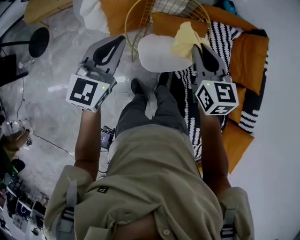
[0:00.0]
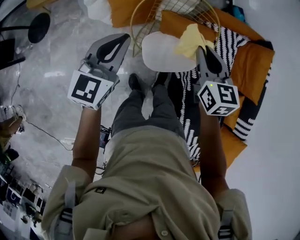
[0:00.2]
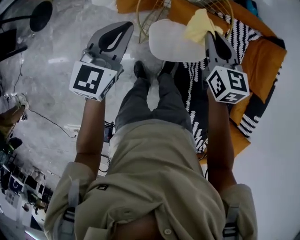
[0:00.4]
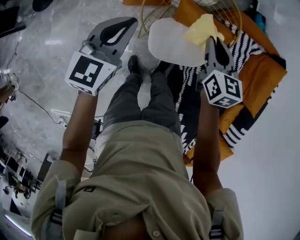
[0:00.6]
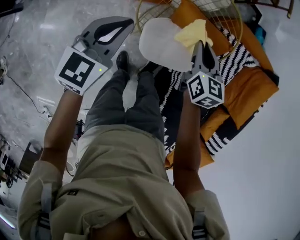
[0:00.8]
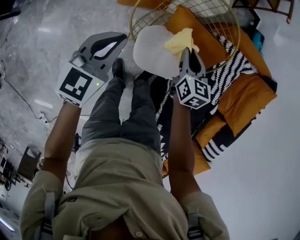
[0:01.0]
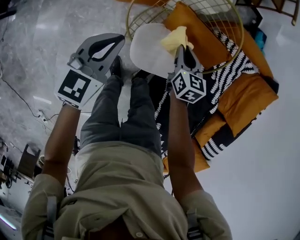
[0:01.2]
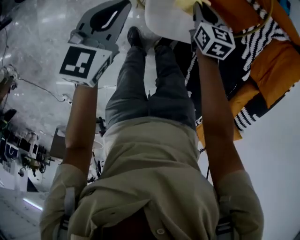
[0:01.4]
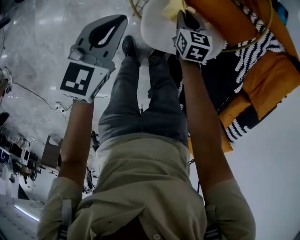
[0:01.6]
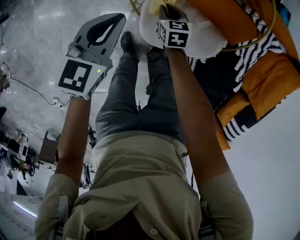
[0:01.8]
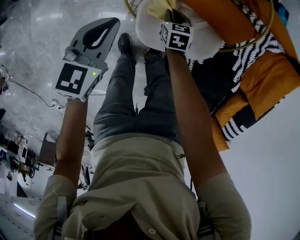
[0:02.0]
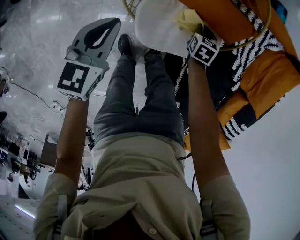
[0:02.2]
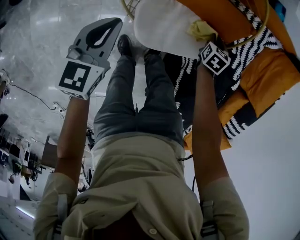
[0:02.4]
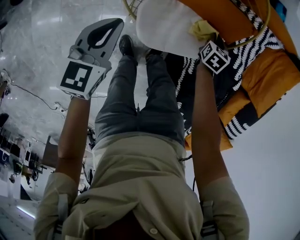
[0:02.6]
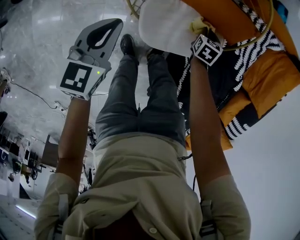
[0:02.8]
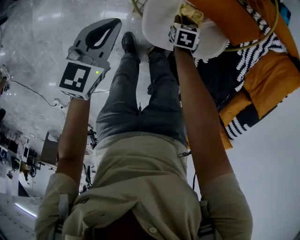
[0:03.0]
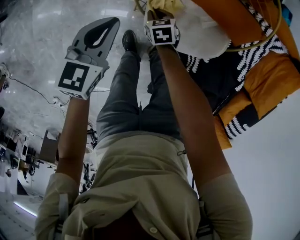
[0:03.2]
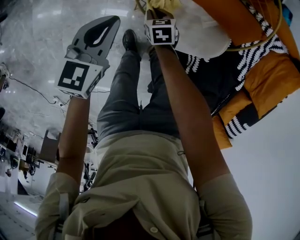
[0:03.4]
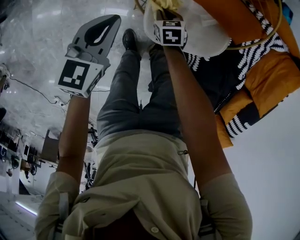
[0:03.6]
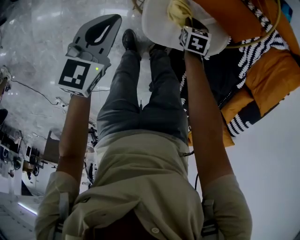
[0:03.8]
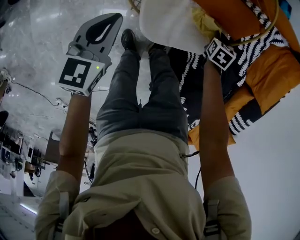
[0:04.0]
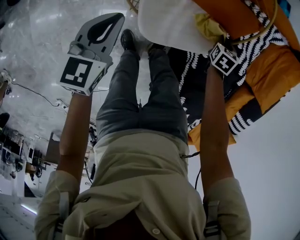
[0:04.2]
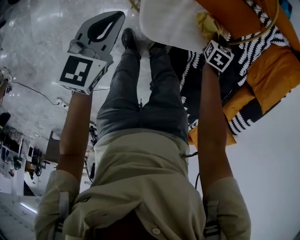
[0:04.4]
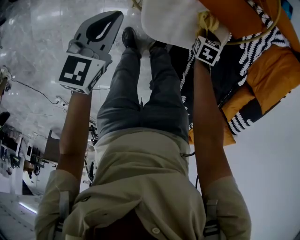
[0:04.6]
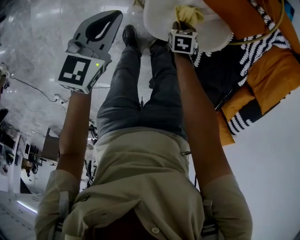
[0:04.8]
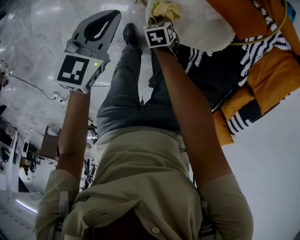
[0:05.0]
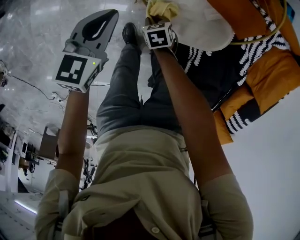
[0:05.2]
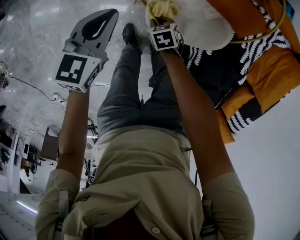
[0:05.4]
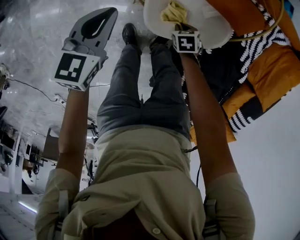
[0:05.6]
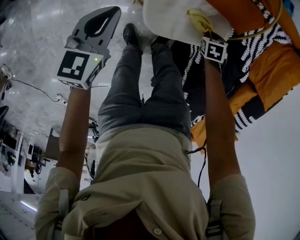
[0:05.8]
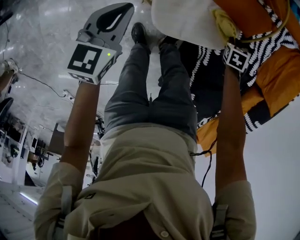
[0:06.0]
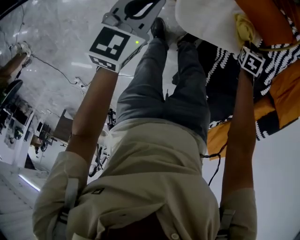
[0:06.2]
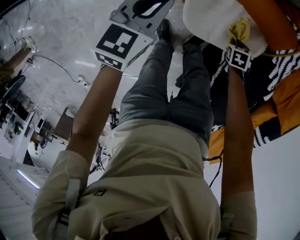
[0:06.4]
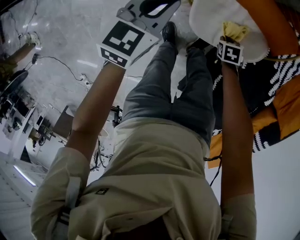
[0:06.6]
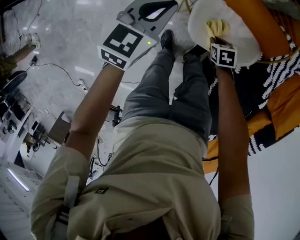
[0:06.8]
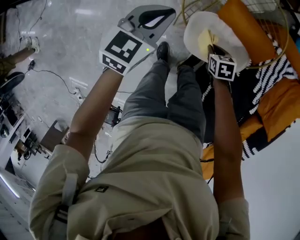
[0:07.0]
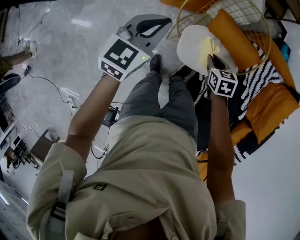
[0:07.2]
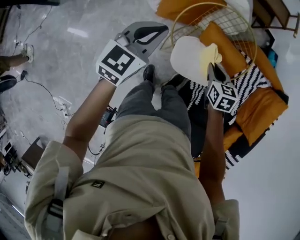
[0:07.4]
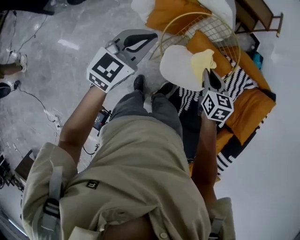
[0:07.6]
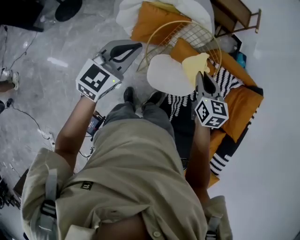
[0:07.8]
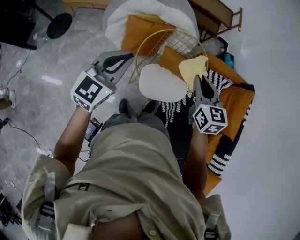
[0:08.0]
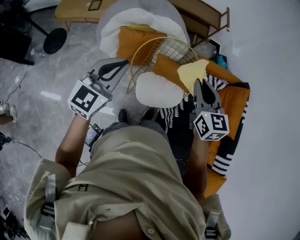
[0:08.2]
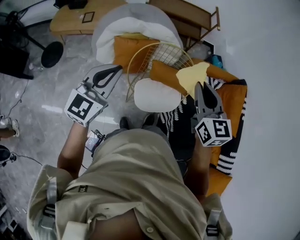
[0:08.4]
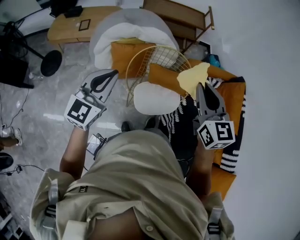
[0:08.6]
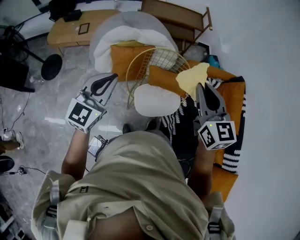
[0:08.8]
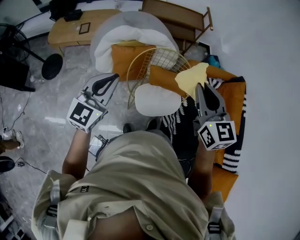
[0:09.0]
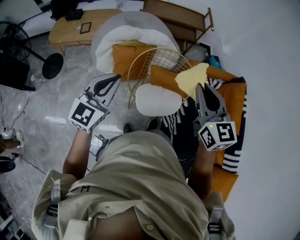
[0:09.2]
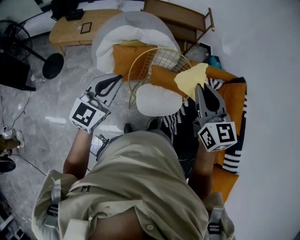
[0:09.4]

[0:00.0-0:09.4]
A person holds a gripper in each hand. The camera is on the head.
0.0 to 1.6 s: The left gripper heads downward, covering roughly 30 cm, and turns by some 30 degrees; the right gripper heads downward, covering about 40 cm, and rotates about 30 degrees.
1.6 to 3.2 s: The left gripper goes roughly 5 cm downward. The right gripper moves up and down over some 10 cm, changing direction 2 times.
3.2 to 4.8 s: The right gripper travels upward and back again, about 5 cm each way.
4.8 to 6.2 s: The right gripper moves some 20 cm.
6.2 to 7.8 s: Both grippers travel together upward, about 40 cm. The left gripper changes its angle by roughly 20 degrees. Meanwhile the right gripper angles its fingers upward, by some 50 degrees.
7.8 to 9.4 s: The right gripper moves upward, about 20 cm, and changes its angle by some 20 degrees, while the left gripper shifts some 10 cm upward.

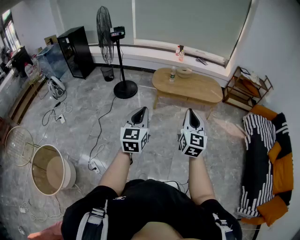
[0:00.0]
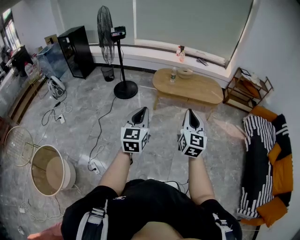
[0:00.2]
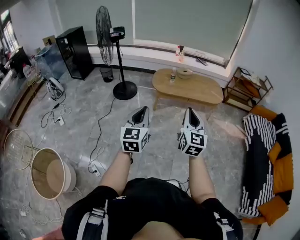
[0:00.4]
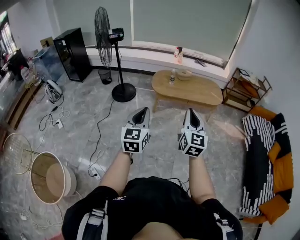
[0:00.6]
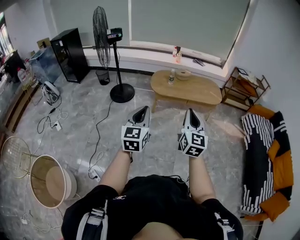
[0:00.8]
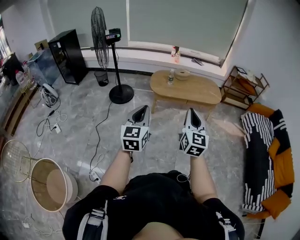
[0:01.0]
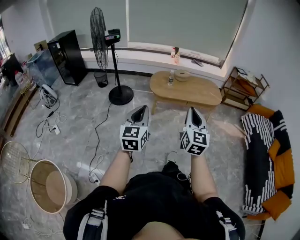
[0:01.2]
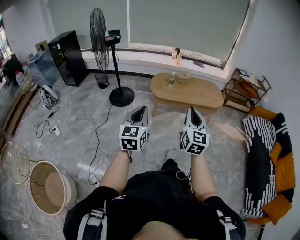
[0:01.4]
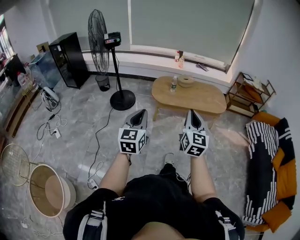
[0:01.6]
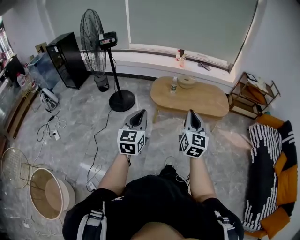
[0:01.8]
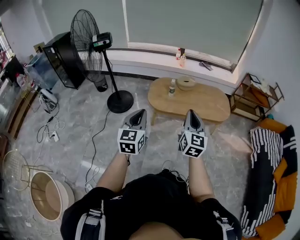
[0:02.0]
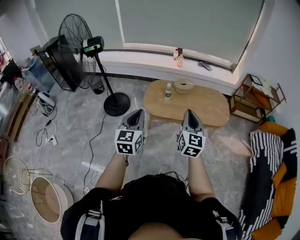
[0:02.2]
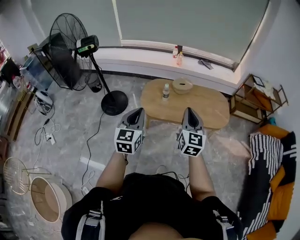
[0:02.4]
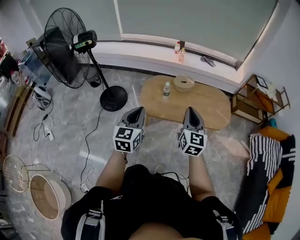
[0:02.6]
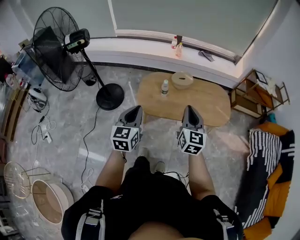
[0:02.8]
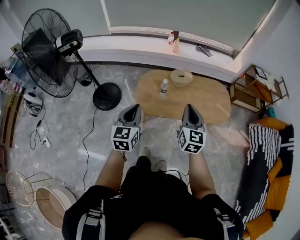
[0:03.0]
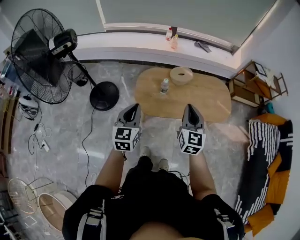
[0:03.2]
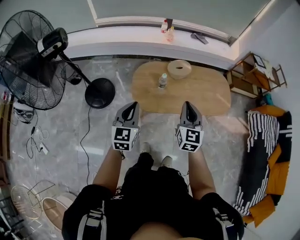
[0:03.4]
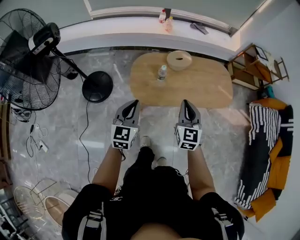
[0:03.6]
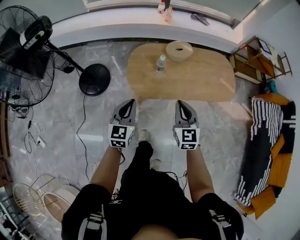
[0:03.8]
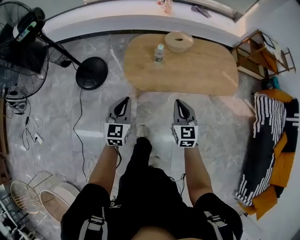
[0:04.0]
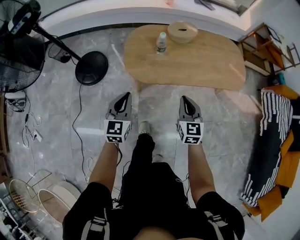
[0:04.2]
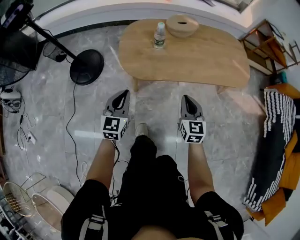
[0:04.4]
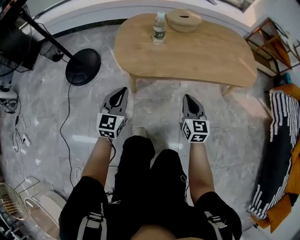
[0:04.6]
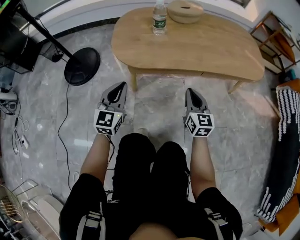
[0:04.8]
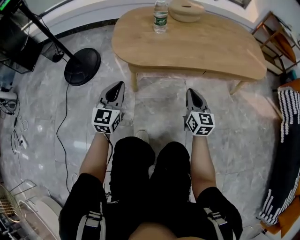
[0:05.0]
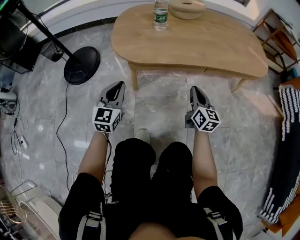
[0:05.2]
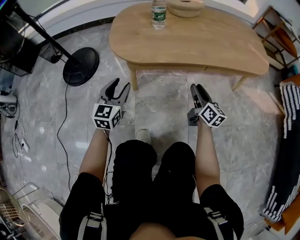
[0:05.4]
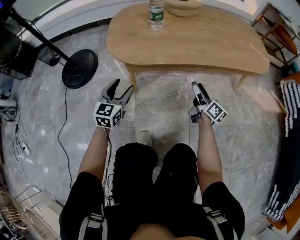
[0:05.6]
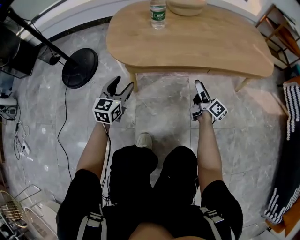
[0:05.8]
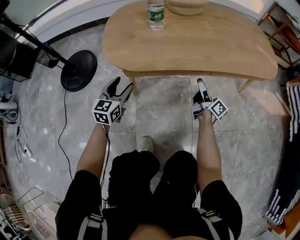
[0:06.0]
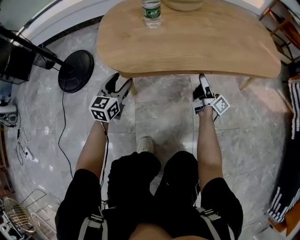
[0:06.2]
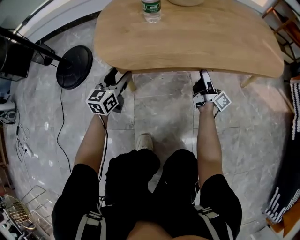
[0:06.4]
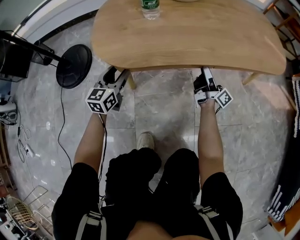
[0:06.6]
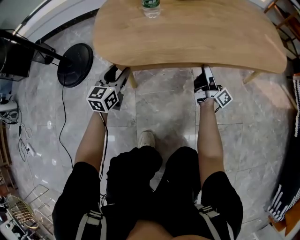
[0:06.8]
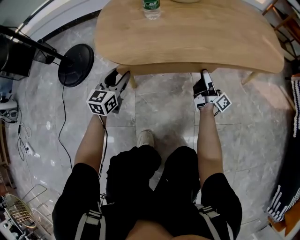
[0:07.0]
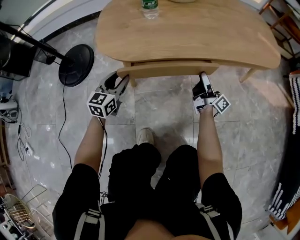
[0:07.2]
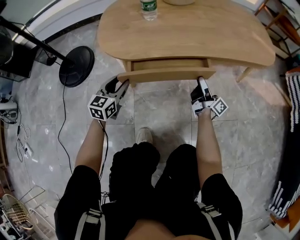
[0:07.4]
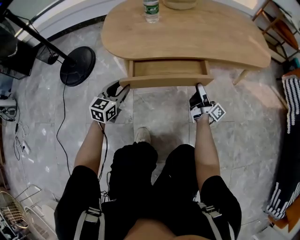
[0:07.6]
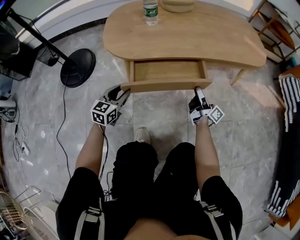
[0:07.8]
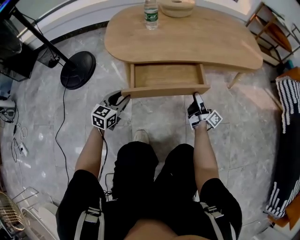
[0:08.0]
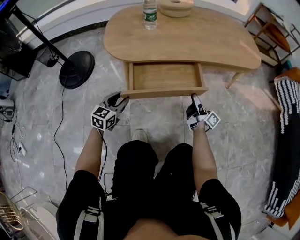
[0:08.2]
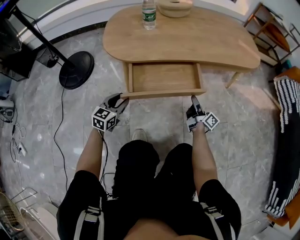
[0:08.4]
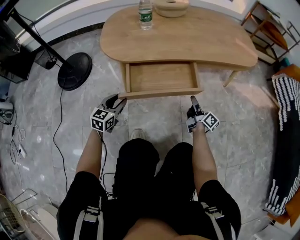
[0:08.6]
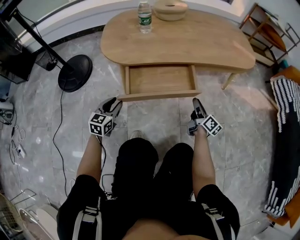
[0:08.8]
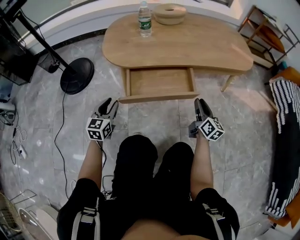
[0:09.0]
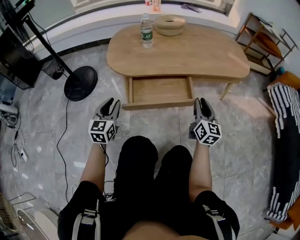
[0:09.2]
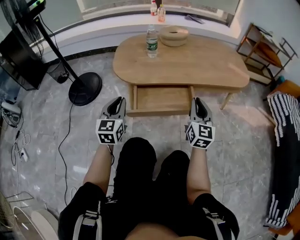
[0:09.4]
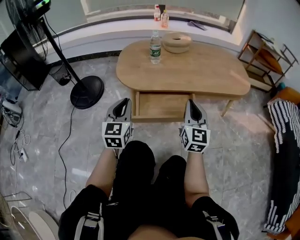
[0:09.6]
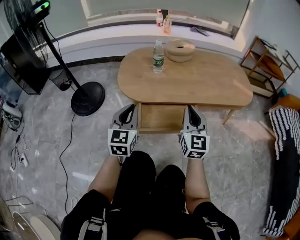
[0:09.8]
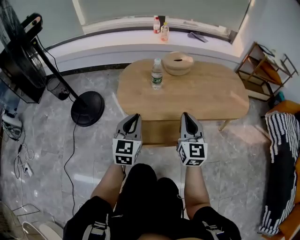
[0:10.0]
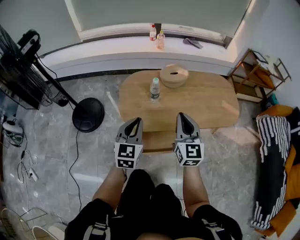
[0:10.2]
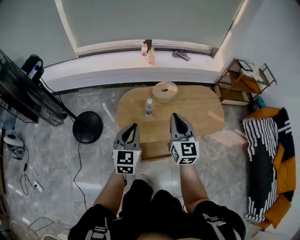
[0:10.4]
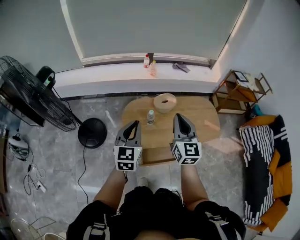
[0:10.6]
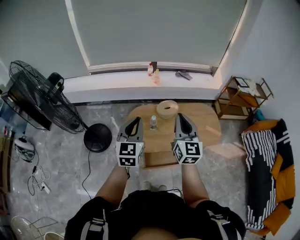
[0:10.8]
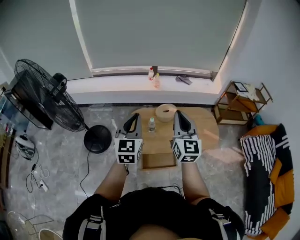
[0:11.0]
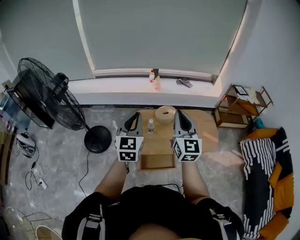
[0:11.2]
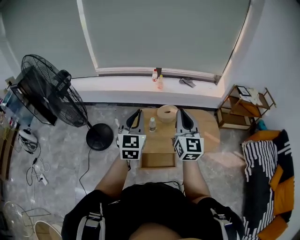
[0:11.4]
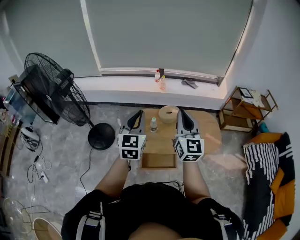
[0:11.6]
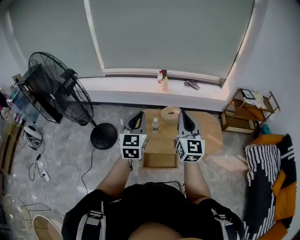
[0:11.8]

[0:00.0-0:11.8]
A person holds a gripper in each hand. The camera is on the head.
0.0 to 1.4 s: The grippers both shift forward and to the left by some 15 cm.
1.4 to 3.0 s: The pair of grippers is taken forward, about 70 cm.
3.0 to 4.4 s: The two grippers go roughly 50 cm downward.
4.4 to 6.0 s: The two grippers go roughly 35 cm downward. The left gripper opens up. The right gripper twists roughly 60 degrees clockwise, seen from behind, and opens.
6.0 to 7.4 s: The right gripper moves backward, some 5 cm, and closes.
7.4 to 8.8 s: The left gripper heads backward, covering some 10 cm, while the right gripper travels backward and to the right by about 15 cm, and rotates roughly 30 degrees.
8.8 to 10.4 s: Both grippers move upward, approximately 70 cm. The left gripper closes up. Meanwhile the right gripper rotates around the line of its fingers by about 50 degrees, counterclockwise from behind, and closes its fingers.
10.4 to 11.8 s: Both grippers travel together upward, roughly 25 cm.

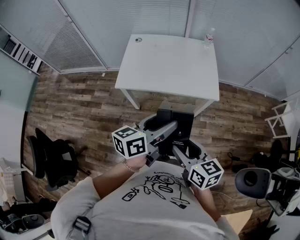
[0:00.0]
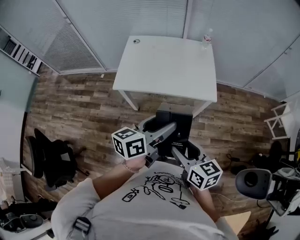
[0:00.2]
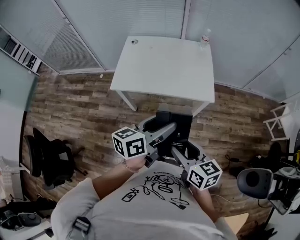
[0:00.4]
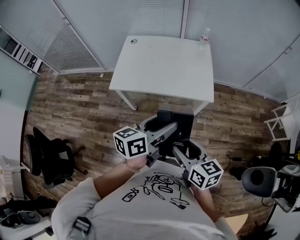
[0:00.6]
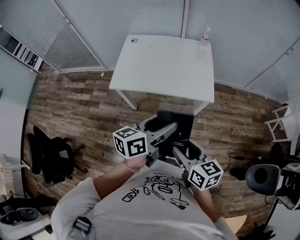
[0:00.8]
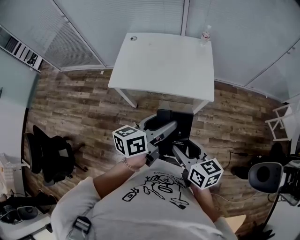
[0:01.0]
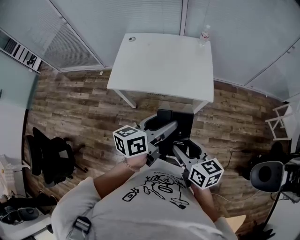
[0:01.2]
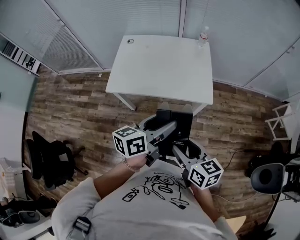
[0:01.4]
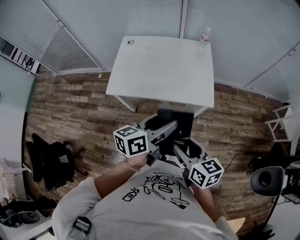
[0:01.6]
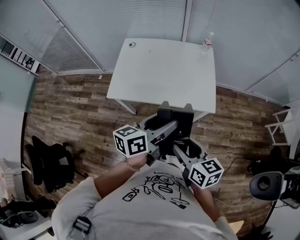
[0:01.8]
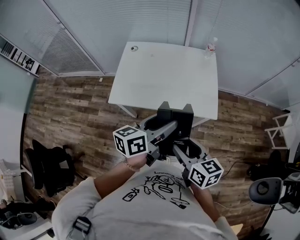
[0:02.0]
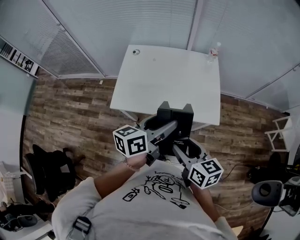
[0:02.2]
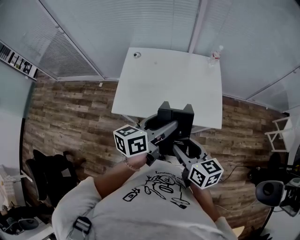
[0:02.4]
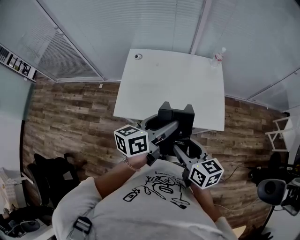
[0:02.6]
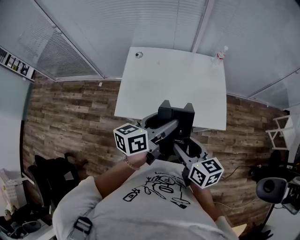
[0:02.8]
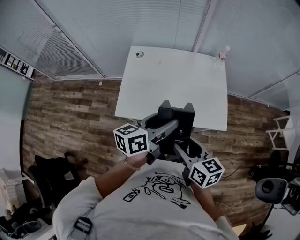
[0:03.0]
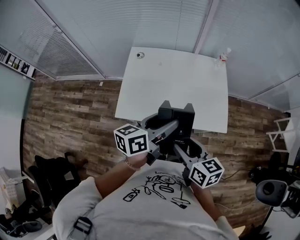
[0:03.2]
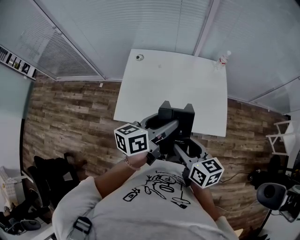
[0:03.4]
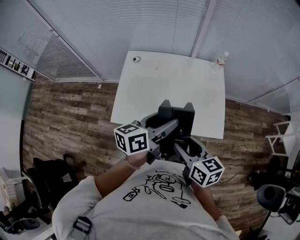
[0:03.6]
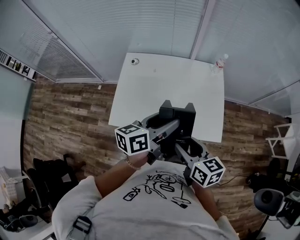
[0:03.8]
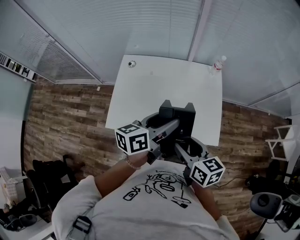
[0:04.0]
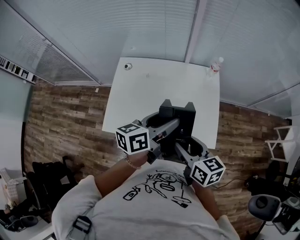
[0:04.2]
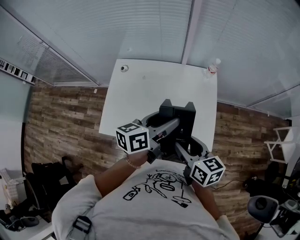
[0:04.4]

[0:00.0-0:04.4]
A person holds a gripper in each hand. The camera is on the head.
0.0 to 1.4 s: Both grippers move to the right and forward, some 10 cm.
1.4 to 3.0 s: Both grippers travel together forward and to the left, about 25 cm.
3.0 to 4.4 s: The two grippers go some 20 cm forward and to the right.
